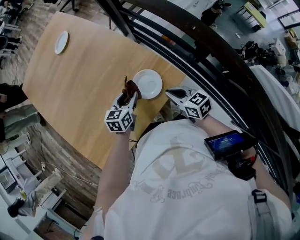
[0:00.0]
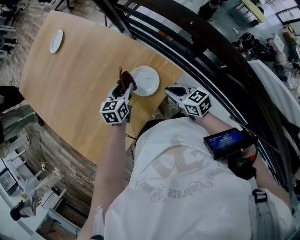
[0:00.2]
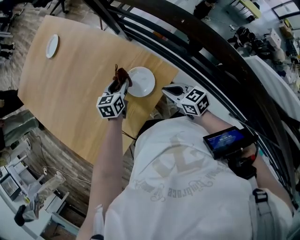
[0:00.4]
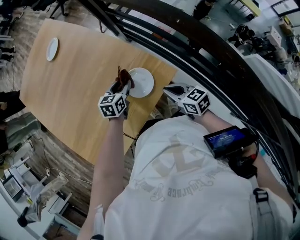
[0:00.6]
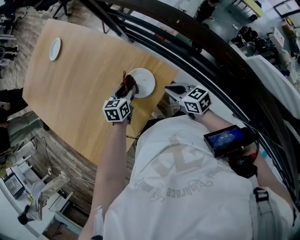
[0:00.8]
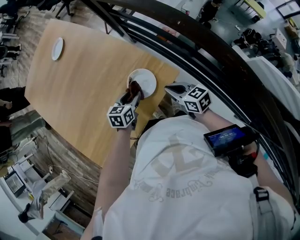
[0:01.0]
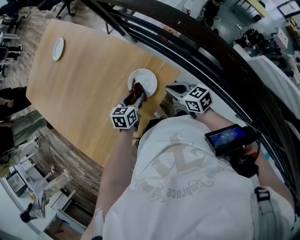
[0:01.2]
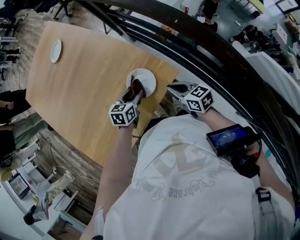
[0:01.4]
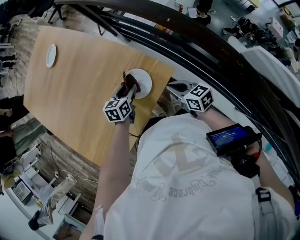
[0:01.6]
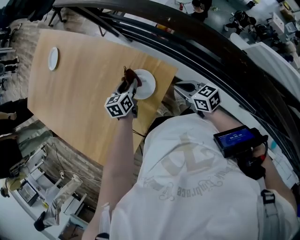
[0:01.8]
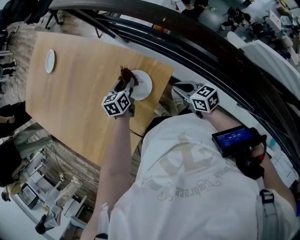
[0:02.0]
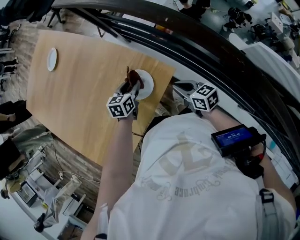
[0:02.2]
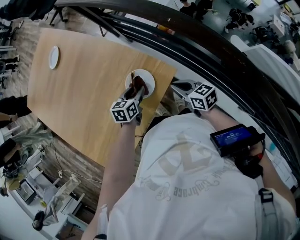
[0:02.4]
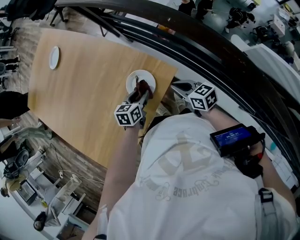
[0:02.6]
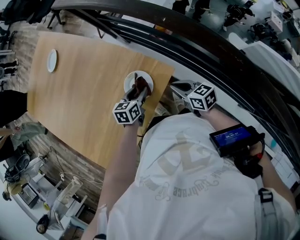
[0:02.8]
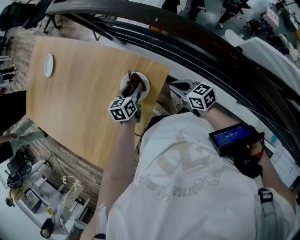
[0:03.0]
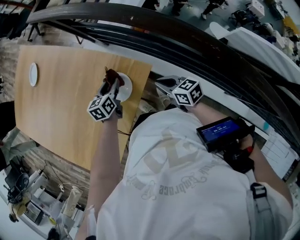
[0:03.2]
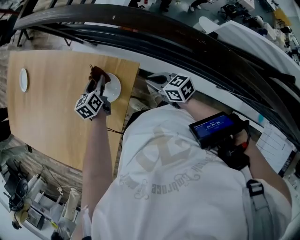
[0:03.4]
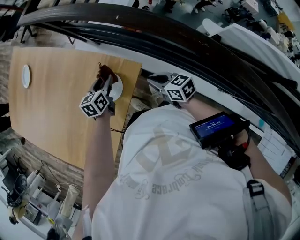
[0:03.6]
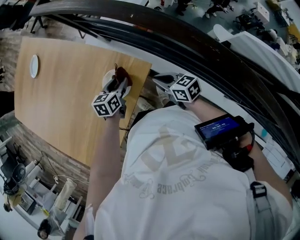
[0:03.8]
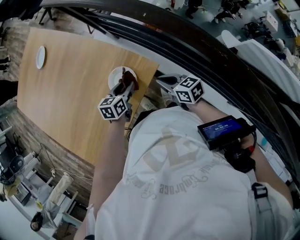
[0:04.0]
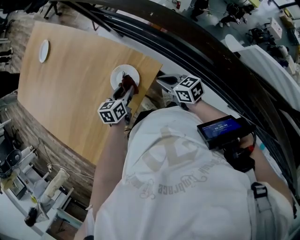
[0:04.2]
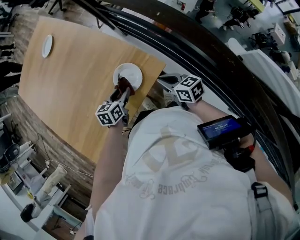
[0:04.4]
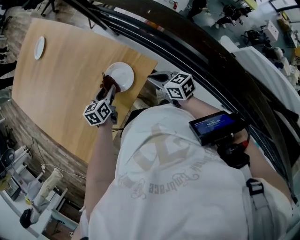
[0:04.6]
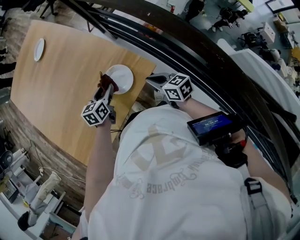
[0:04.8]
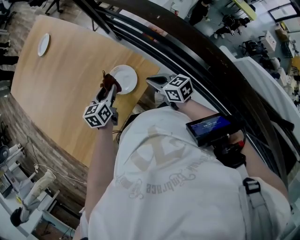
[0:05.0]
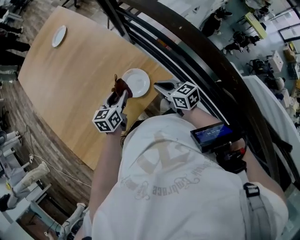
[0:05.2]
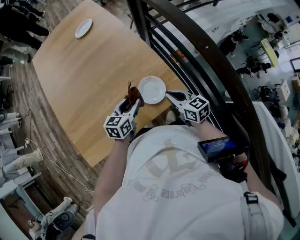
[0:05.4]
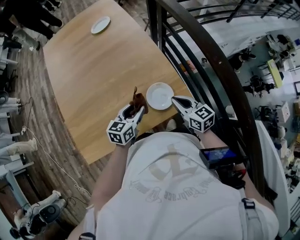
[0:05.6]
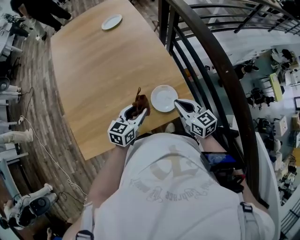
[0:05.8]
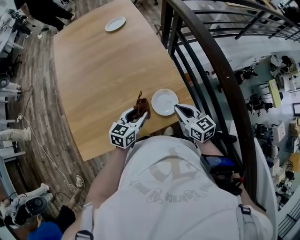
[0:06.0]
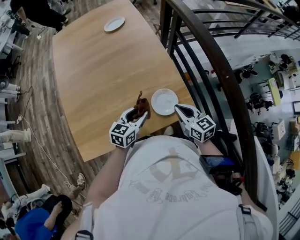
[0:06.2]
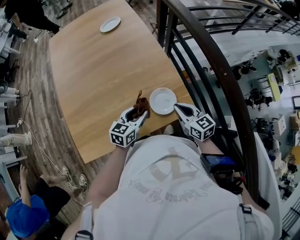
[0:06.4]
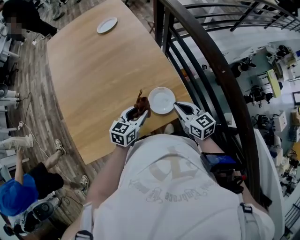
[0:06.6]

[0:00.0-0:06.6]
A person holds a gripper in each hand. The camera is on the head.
0:00.0 to 0:01.6: The left gripper goes forward and backward, roughly 10 cm each way, reversing 2 times; the right gripper changes place by approximately 5 cm.
0:01.6 to 0:03.2: The left gripper travels backward and back again, some 5 cm each way, while the right gripper heads to the right, covering about 5 cm.
0:03.2 to 0:05.0: The left gripper is displaced backward and to the left by roughly 10 cm. Meanwhile the right gripper ends up some 5 cm from where it was.
0:05.0 to 0:06.6: The left gripper travels backward by about 10 cm; the right gripper moves upward, approximately 5 cm, and swivels some 20 degrees.

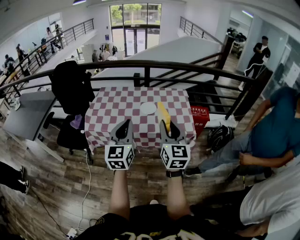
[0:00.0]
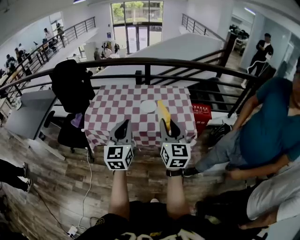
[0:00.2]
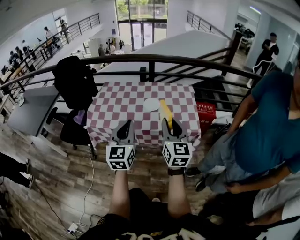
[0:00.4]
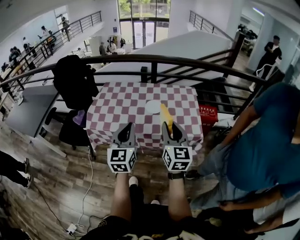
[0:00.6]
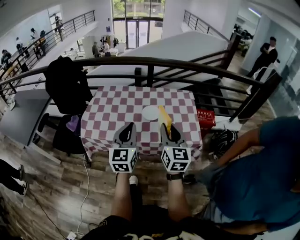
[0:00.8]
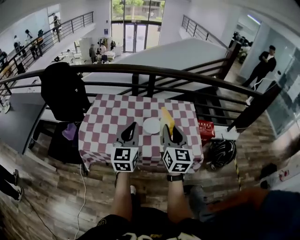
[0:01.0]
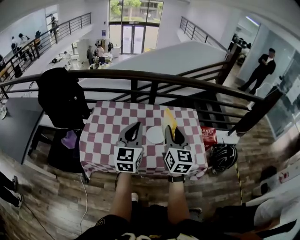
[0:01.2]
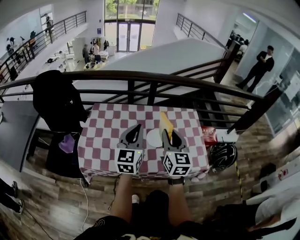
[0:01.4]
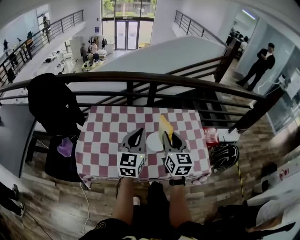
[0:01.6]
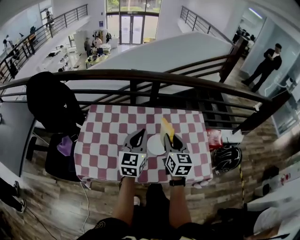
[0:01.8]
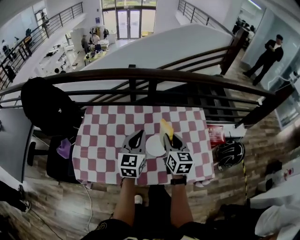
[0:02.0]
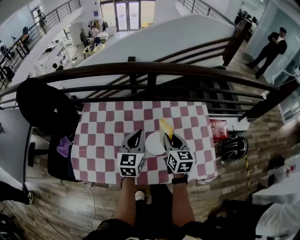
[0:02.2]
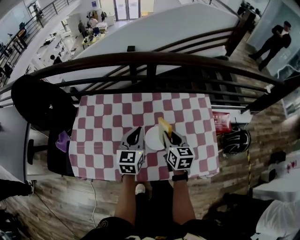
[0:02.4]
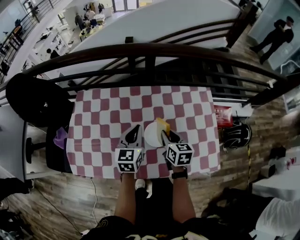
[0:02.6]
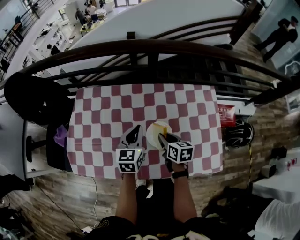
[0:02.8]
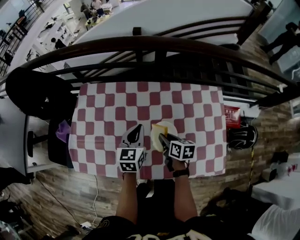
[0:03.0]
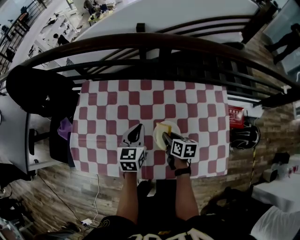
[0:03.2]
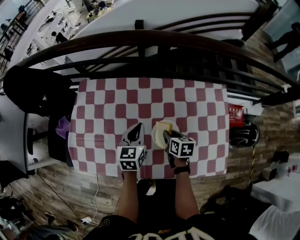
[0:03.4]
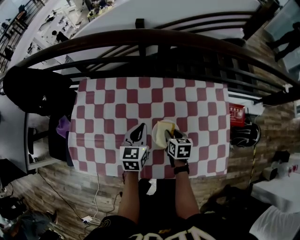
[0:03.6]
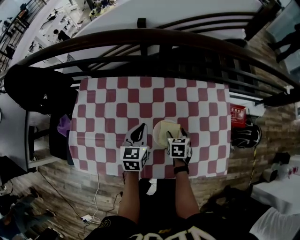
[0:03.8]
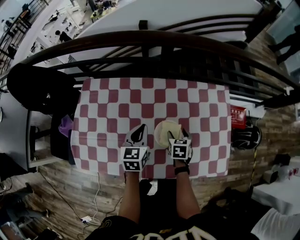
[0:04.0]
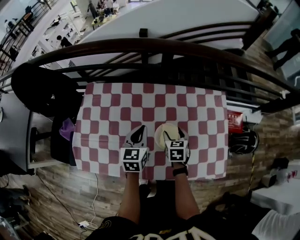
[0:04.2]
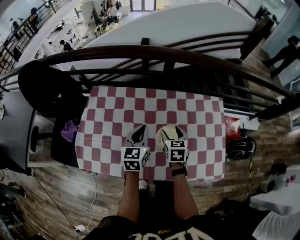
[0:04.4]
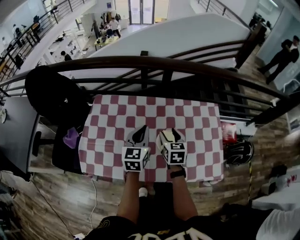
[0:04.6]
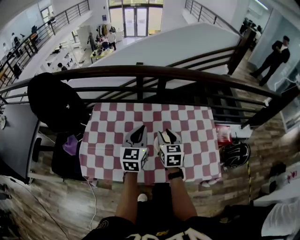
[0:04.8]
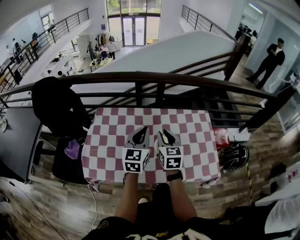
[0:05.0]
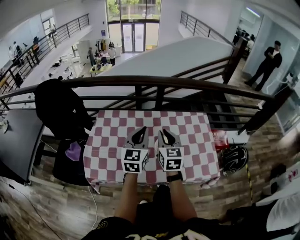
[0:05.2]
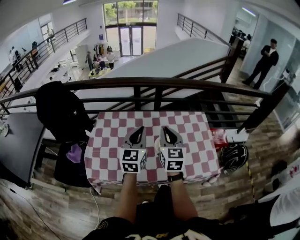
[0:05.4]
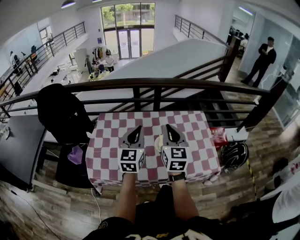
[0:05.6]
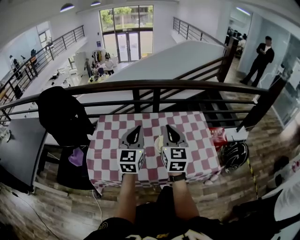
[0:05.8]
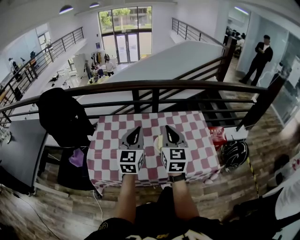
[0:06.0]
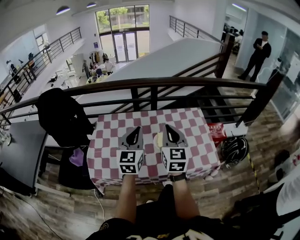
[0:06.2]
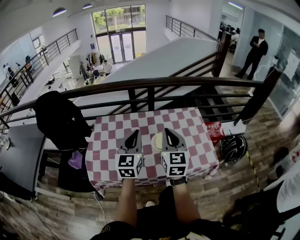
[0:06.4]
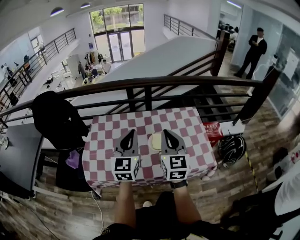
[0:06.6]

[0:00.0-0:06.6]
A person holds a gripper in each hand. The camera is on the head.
0:00.0 to 0:01.6: The grippers both shift forward by approximately 25 cm.
0:01.6 to 0:03.2: The two grippers go some 25 cm downward. The right gripper points its fingers approximately 40 degrees further downward, while the left gripper turns by approximately 30 degrees.
0:03.2 to 0:05.0: Both grippers move upward, some 20 cm. The left gripper swivels approximately 20 degrees; the right gripper changes its angle by roughly 50 degrees, and opens and closes again.
0:05.0 to 0:06.6: The right gripper moves upward, backward and to the right, about 15 cm, and swivels approximately 20 degrees. The left gripper travels backward and upward by roughly 10 cm.

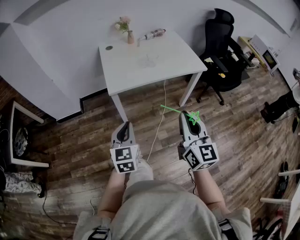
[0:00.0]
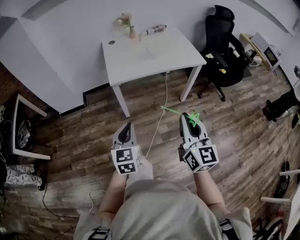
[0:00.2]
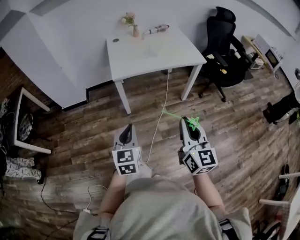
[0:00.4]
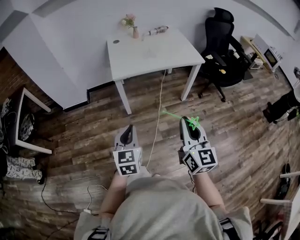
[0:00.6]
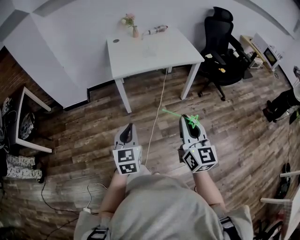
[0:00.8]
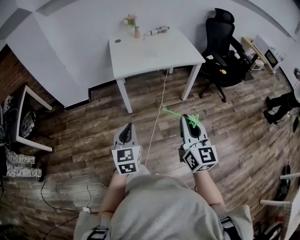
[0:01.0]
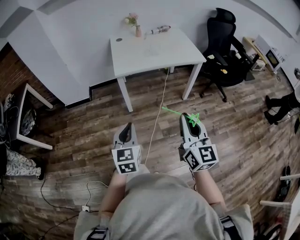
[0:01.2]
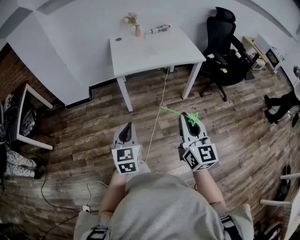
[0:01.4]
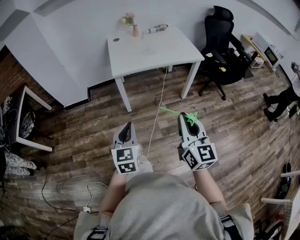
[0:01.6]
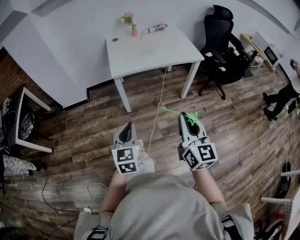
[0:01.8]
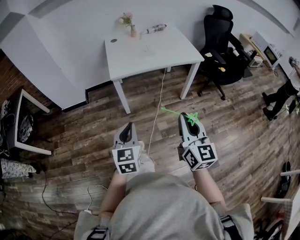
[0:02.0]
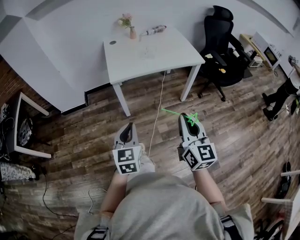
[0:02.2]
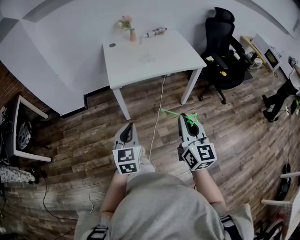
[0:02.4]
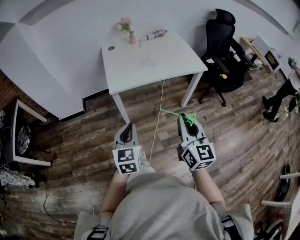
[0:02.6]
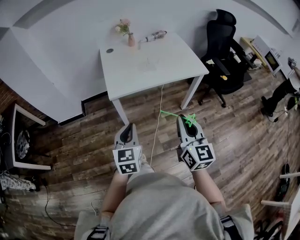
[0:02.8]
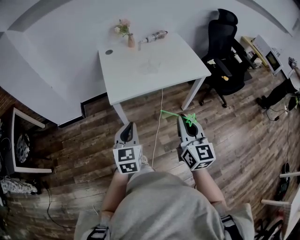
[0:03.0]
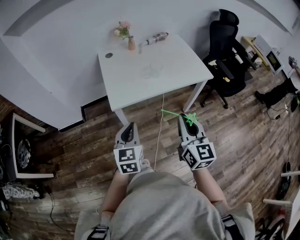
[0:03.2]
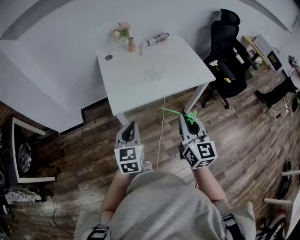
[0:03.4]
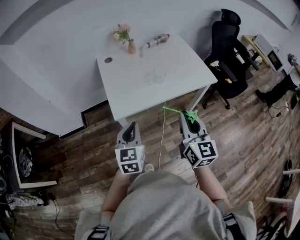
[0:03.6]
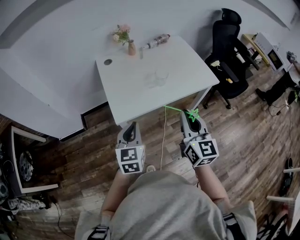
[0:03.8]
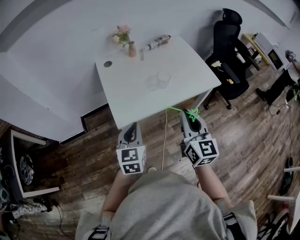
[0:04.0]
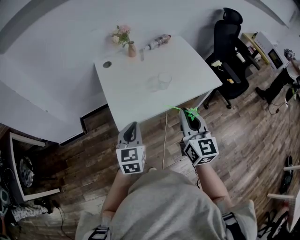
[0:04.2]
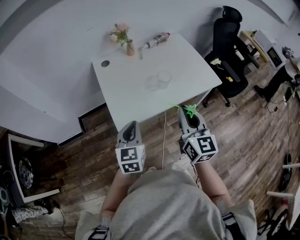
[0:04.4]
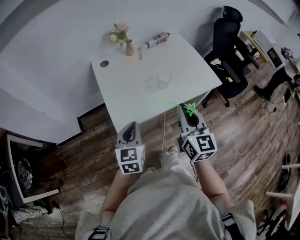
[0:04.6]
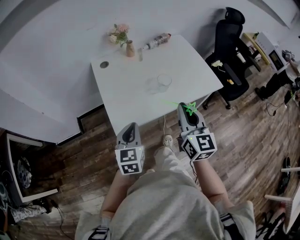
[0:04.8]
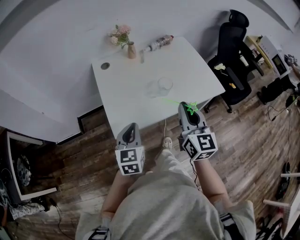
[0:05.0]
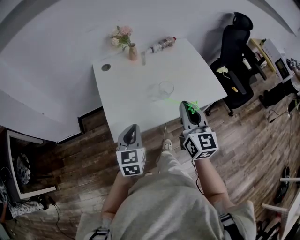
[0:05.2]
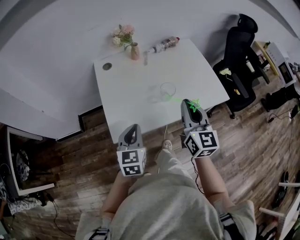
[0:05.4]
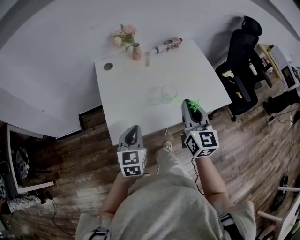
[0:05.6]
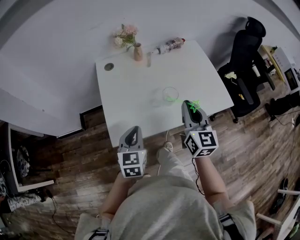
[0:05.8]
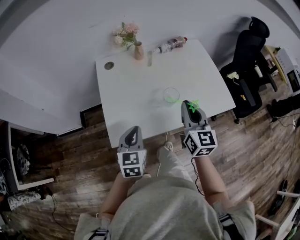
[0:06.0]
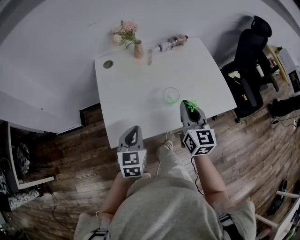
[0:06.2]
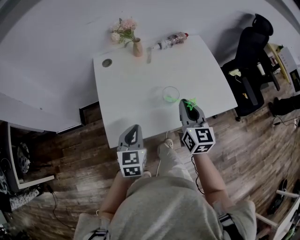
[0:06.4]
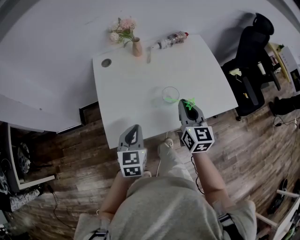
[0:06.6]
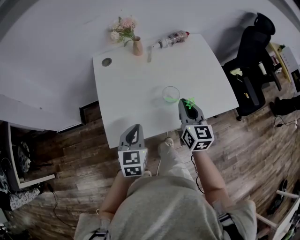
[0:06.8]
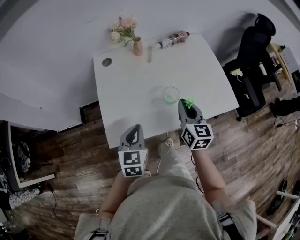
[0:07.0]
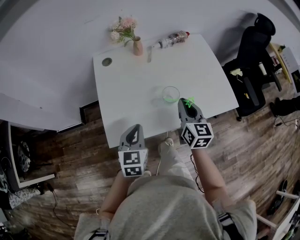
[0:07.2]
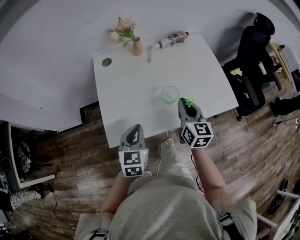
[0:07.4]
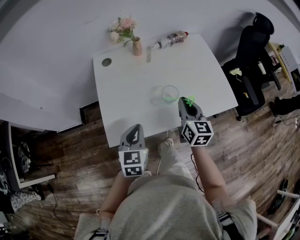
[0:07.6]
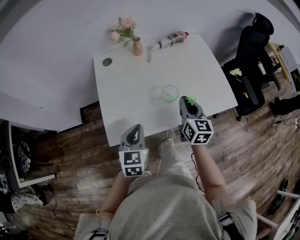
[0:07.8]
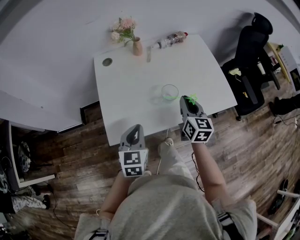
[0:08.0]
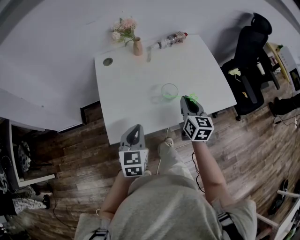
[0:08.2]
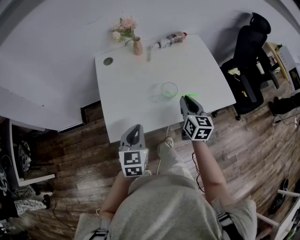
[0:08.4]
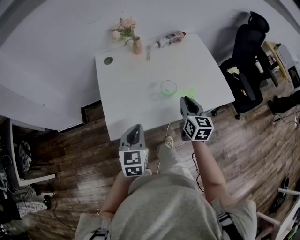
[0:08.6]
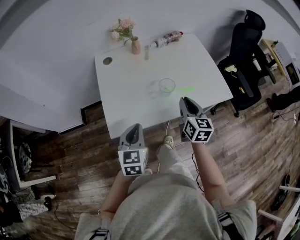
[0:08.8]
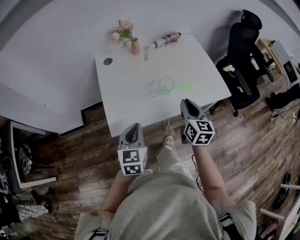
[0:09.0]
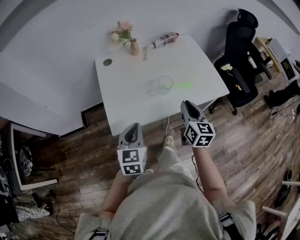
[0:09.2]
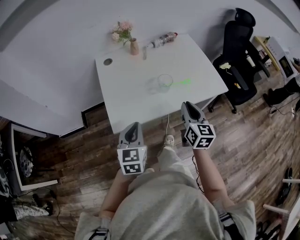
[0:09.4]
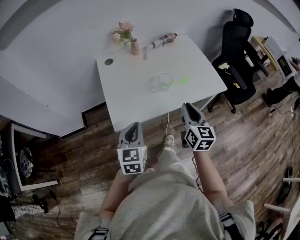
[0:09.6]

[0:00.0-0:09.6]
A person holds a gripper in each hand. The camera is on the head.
0:00.0 to 0:01.6: The grippers both shift backward by roughly 15 cm.
0:01.6 to 0:03.2: Both grippers move forward, about 30 cm.
0:03.2 to 0:04.8: The two grippers go approximately 20 cm forward.
0:04.8 to 0:06.4: The left gripper moves forward and downward, approximately 10 cm, while the right gripper shifts about 20 cm forward and downward.
0:06.4 to 0:08.0: The right gripper changes place by approximately 5 cm.
0:08.0 to 0:09.6: The right gripper moves backward, approximately 15 cm. Meanwhile the left gripper heads backward and upward, covering about 10 cm.

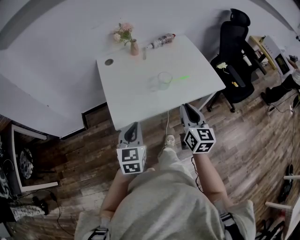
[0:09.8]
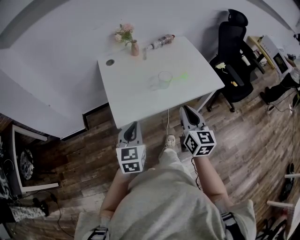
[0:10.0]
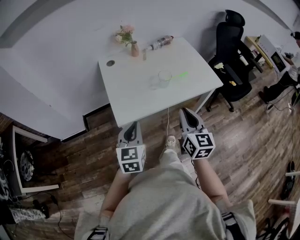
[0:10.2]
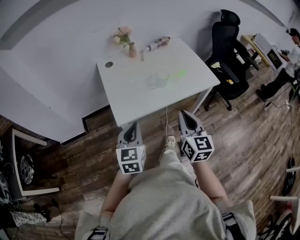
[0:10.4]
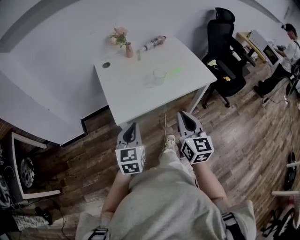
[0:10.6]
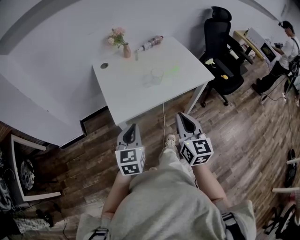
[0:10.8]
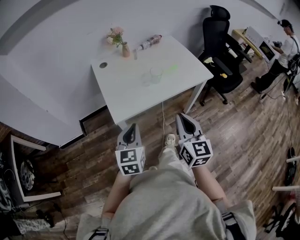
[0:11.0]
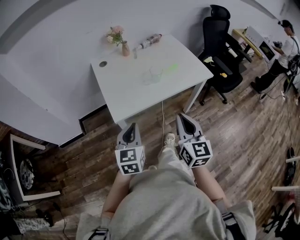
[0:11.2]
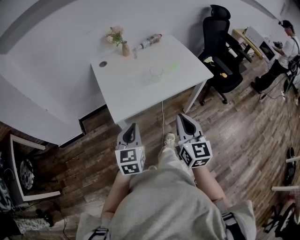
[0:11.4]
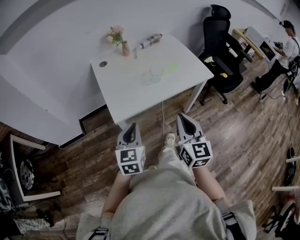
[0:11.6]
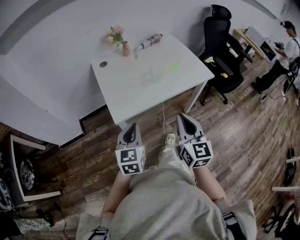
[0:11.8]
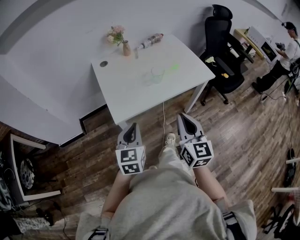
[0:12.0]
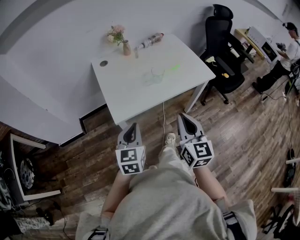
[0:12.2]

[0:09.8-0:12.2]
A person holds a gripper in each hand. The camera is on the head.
0:09.8 to 0:11.0: The right gripper shifts roughly 15 cm backward; the left gripper heads backward, covering roughly 10 cm.
0:11.0 to 0:12.2: The grippers stay close to where they were, moving slightly.
